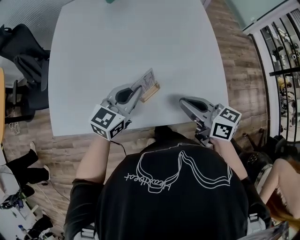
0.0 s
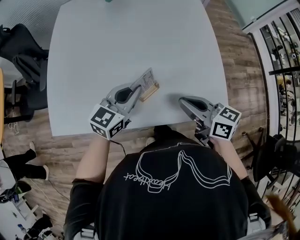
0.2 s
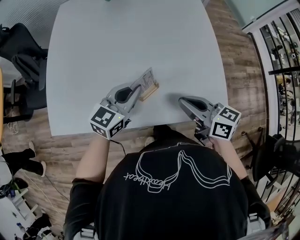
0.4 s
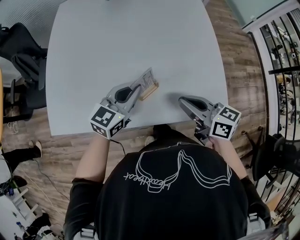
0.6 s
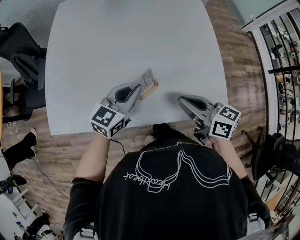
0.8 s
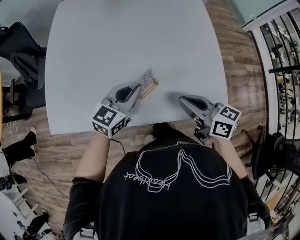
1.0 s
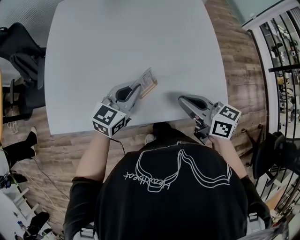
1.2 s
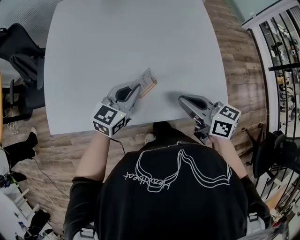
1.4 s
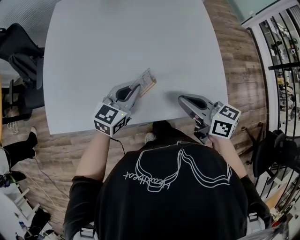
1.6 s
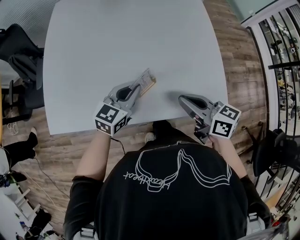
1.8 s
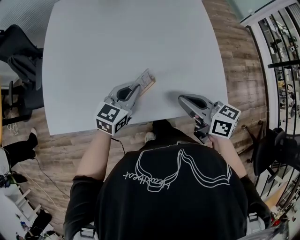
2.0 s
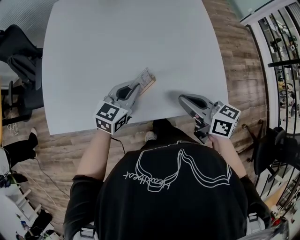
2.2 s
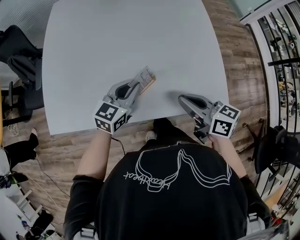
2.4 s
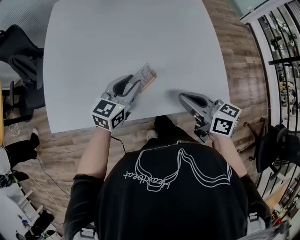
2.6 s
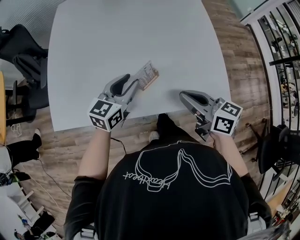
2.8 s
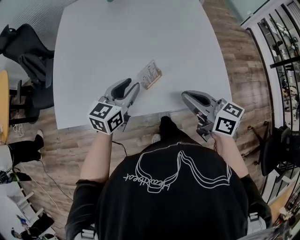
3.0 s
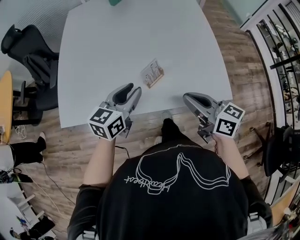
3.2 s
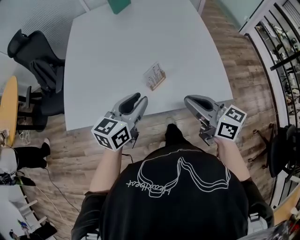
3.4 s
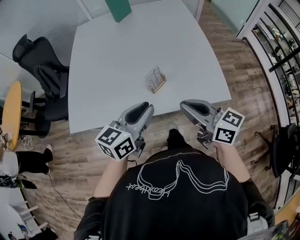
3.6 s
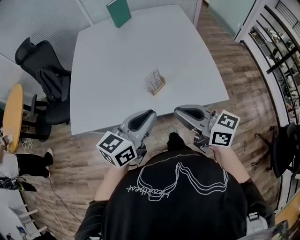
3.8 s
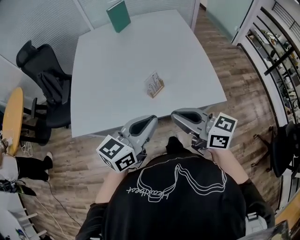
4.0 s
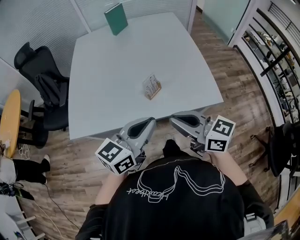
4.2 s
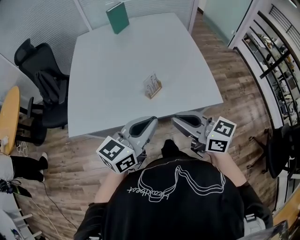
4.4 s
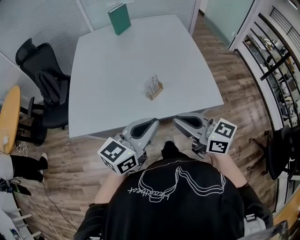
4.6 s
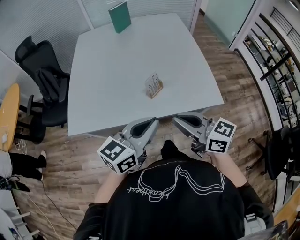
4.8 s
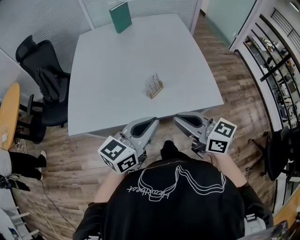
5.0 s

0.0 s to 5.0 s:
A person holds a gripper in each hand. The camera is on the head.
0.0 to 1.6 s: The grippers stay close to where they were, moving slightly.
1.6 to 3.4 s: Both grippers move backward and upward, roughly 15 cm. The left gripper opens.
3.4 to 5.0 s: The right gripper moves backward and to the left, approximately 10 cm. The left gripper is displaced backward and upward by some 15 cm, and closes its fingers.

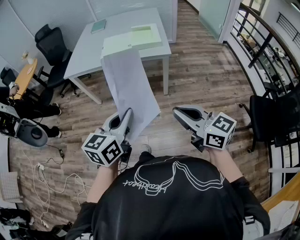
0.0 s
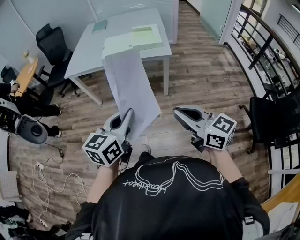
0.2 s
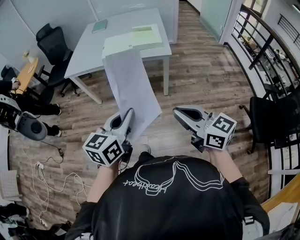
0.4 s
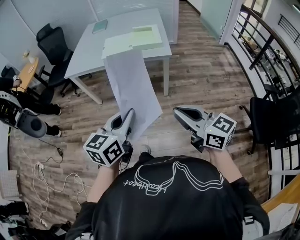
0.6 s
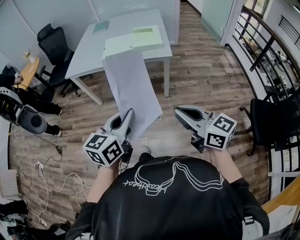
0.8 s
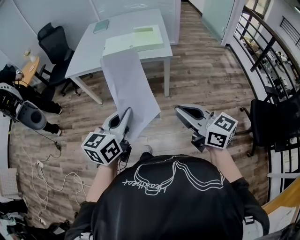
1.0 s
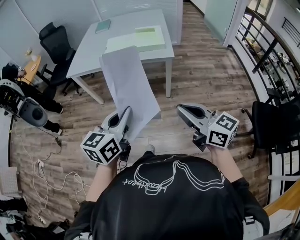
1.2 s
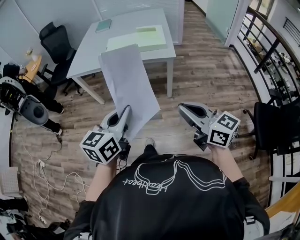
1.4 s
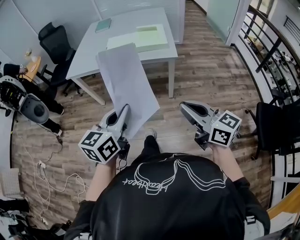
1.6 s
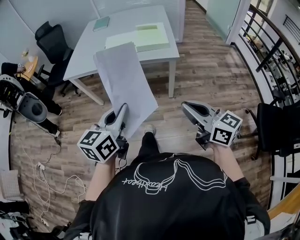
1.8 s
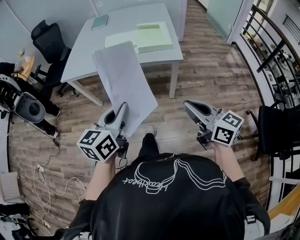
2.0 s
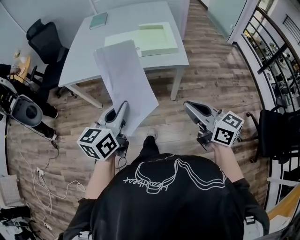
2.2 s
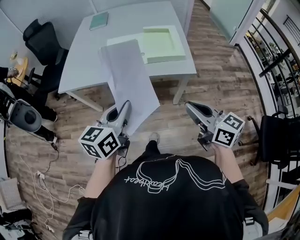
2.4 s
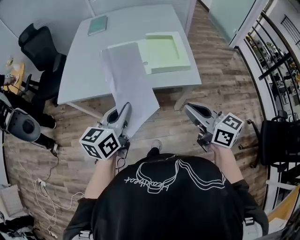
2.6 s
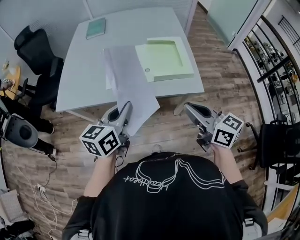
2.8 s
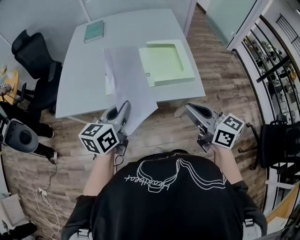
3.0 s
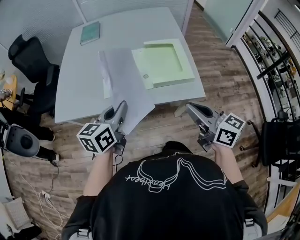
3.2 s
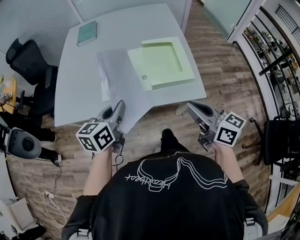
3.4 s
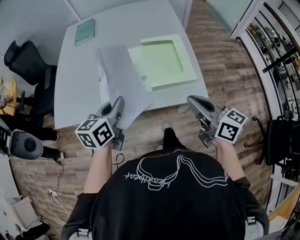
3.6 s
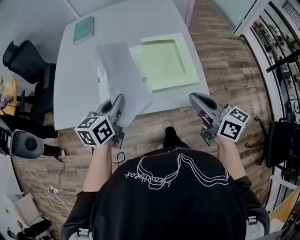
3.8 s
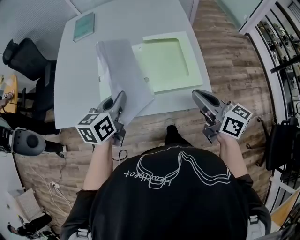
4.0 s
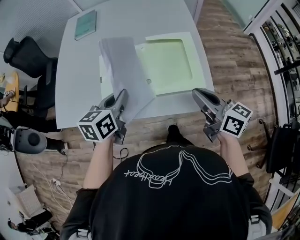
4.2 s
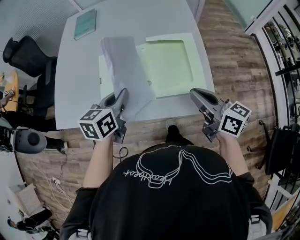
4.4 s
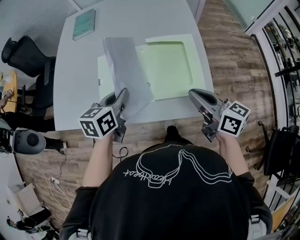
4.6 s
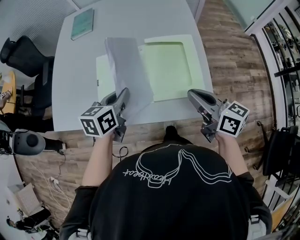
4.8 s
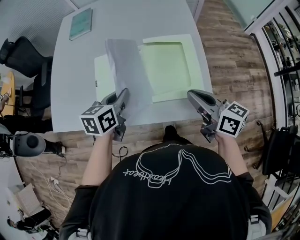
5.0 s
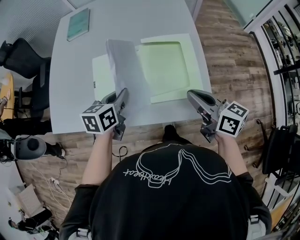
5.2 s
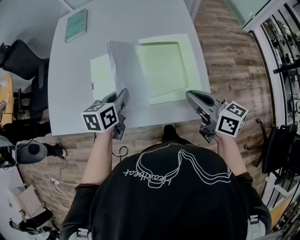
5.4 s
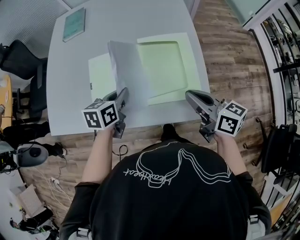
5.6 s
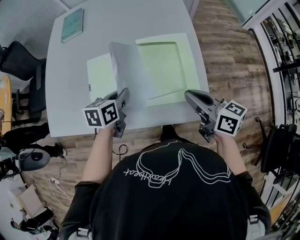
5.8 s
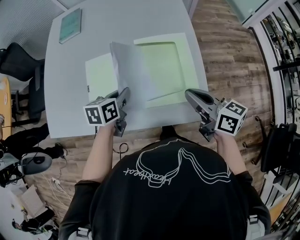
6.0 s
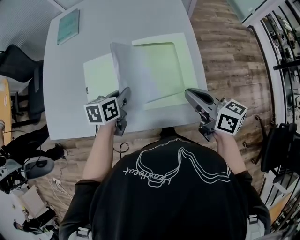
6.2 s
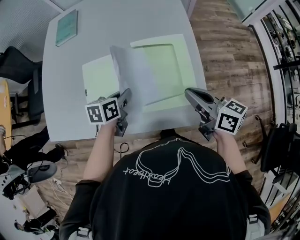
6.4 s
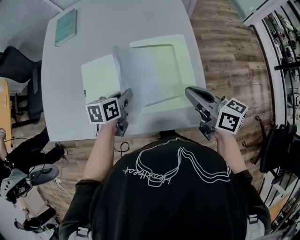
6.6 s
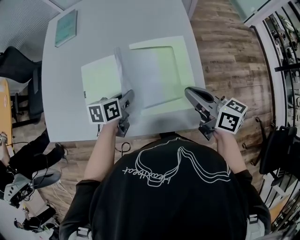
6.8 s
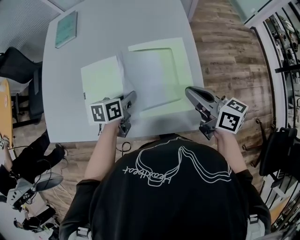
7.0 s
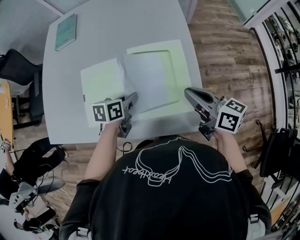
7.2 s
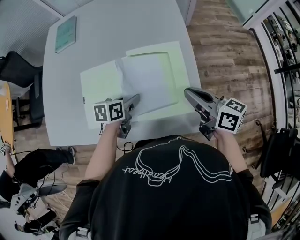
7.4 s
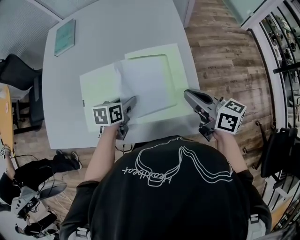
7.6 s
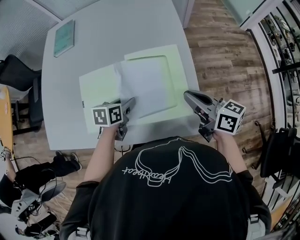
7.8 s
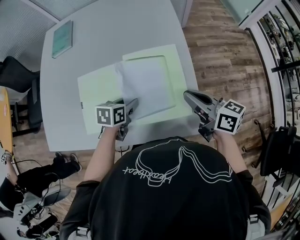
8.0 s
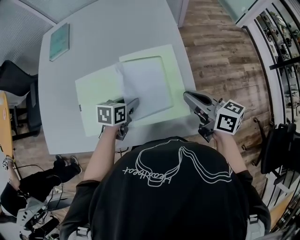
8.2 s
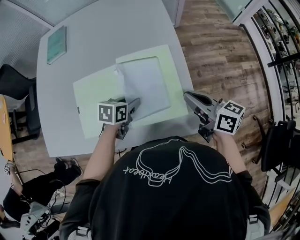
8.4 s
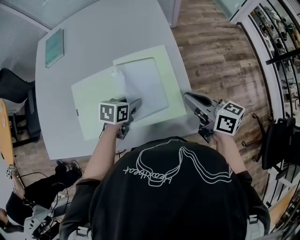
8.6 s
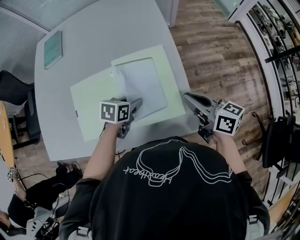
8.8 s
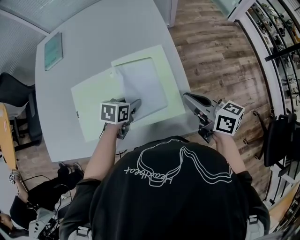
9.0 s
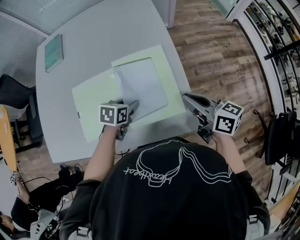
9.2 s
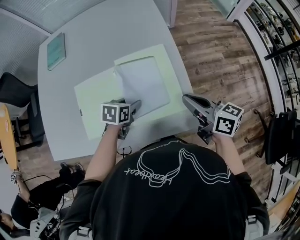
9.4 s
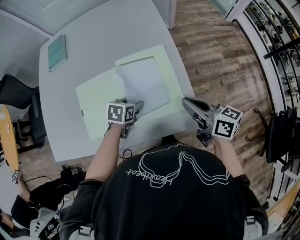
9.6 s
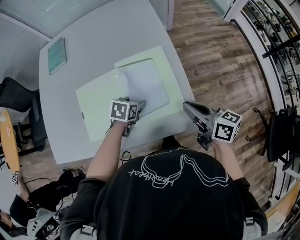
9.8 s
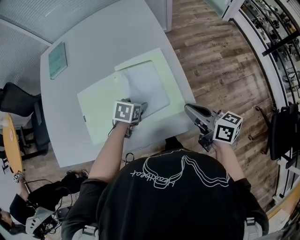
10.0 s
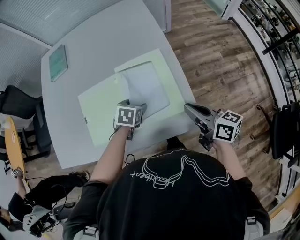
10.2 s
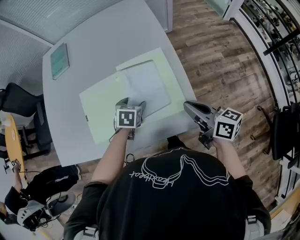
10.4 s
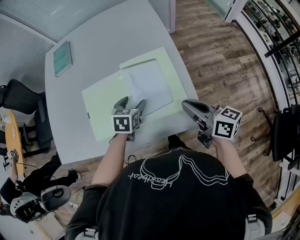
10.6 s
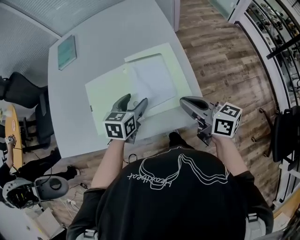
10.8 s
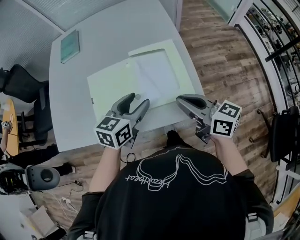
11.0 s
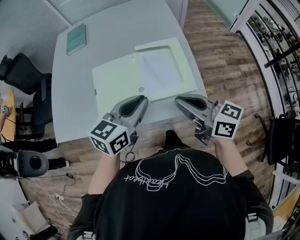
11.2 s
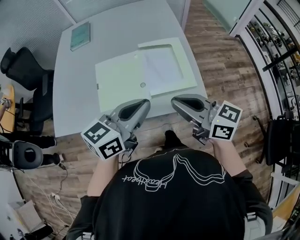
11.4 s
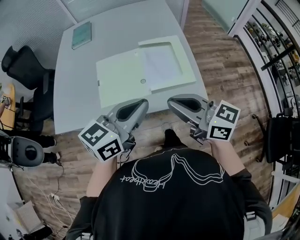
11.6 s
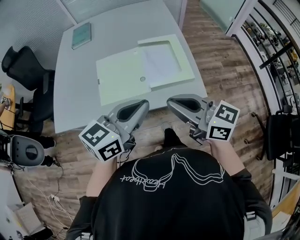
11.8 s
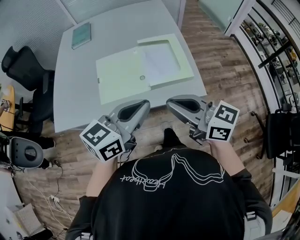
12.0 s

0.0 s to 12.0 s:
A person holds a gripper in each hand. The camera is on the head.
0.0 to 1.6 s: The grippers both shift forward by about 5 cm.
1.6 to 3.0 s: Both grippers are carried forward, about 40 cm.
3.0 to 4.4 s: The two grippers go about 20 cm forward.
4.4 to 6.0 s: The right gripper is displaced forward by some 5 cm. Meanwhile the left gripper moves downward and forward, roughly 10 cm.
6.0 to 7.6 s: The right gripper travels forward by some 5 cm; the left gripper goes some 5 cm downward, and opens its fingers.
7.6 to 9.0 s: The left gripper is displaced to the right by roughly 5 cm.
9.0 to 10.4 s: The right gripper heads backward, covering approximately 5 cm; the left gripper swivels about 20 degrees, and opens its fingers.
10.4 to 12.0 s: The right gripper is displaced backward, to the left and upward by some 30 cm, and changes its angle by about 30 degrees, while the left gripper heads backward and upward, covering some 40 cm, angles its fingers upward, by approximately 50 degrees, and closes up.

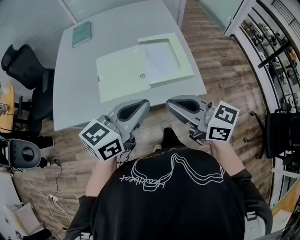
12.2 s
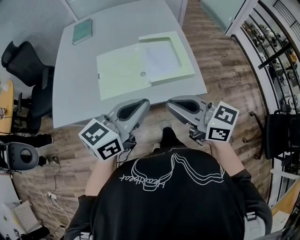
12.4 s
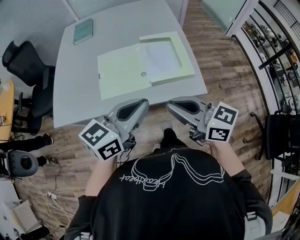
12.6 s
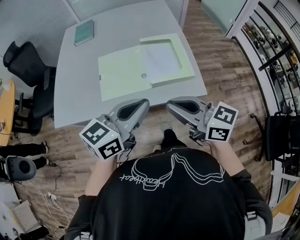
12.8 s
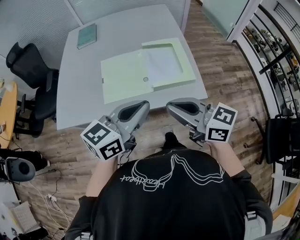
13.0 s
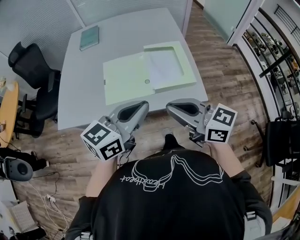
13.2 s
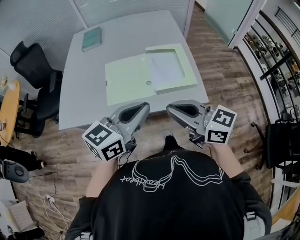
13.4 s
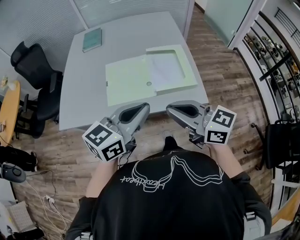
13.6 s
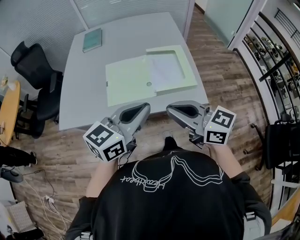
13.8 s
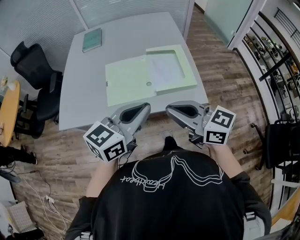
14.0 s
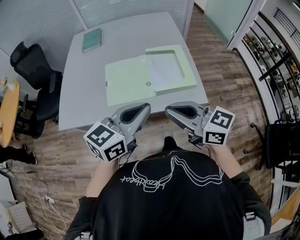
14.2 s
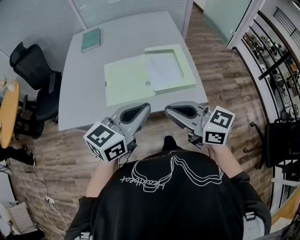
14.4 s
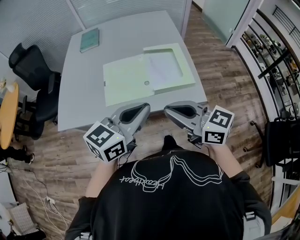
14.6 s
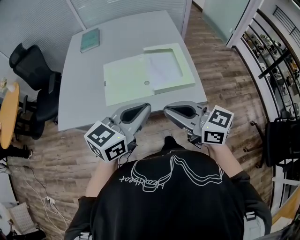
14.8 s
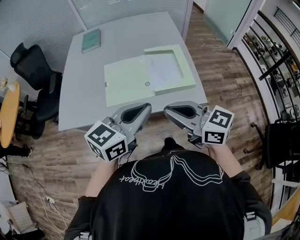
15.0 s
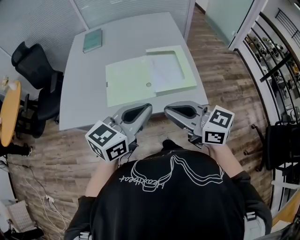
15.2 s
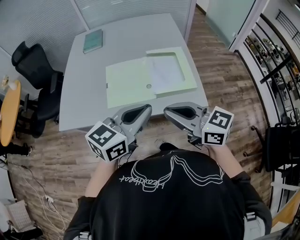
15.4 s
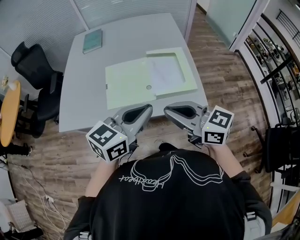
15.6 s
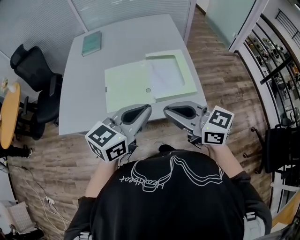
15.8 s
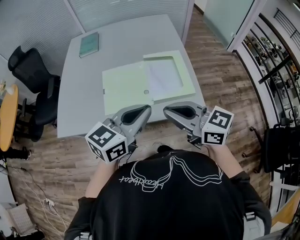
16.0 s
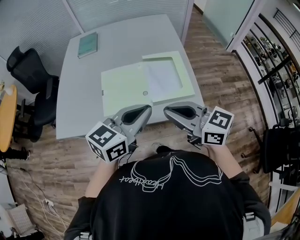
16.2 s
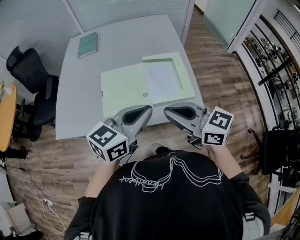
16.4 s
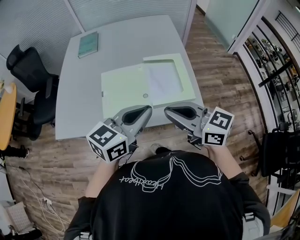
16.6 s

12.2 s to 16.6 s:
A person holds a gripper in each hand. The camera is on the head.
12.2 to 13.6 s: There are only small adjustments of the grippers.
13.6 to 15.2 s: Both grippers stay put.
15.2 to 16.6 s: The two grippers go some 5 cm forward.

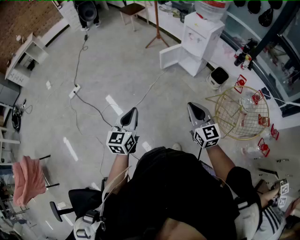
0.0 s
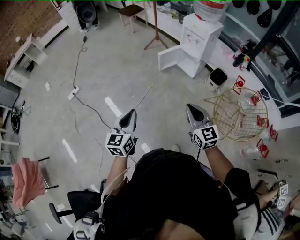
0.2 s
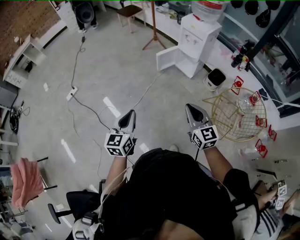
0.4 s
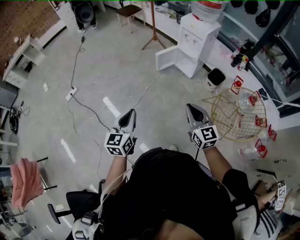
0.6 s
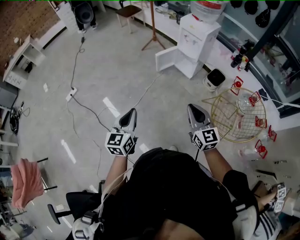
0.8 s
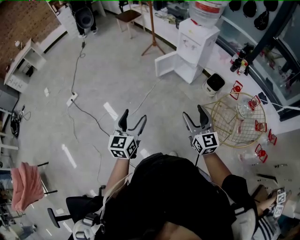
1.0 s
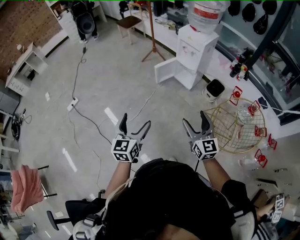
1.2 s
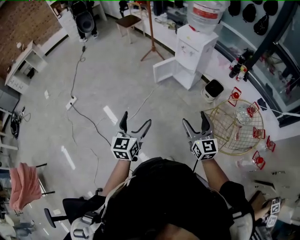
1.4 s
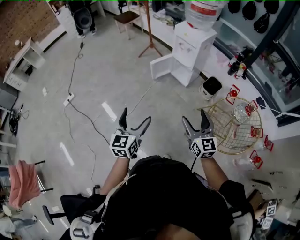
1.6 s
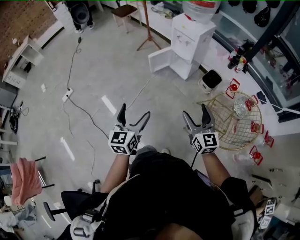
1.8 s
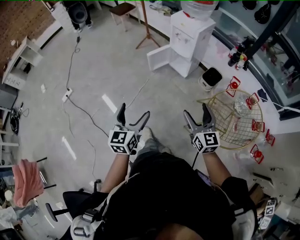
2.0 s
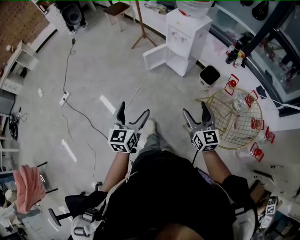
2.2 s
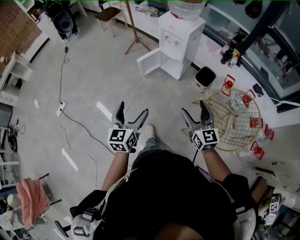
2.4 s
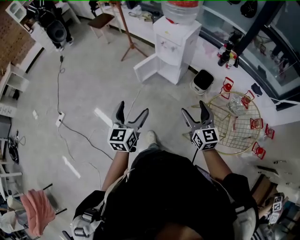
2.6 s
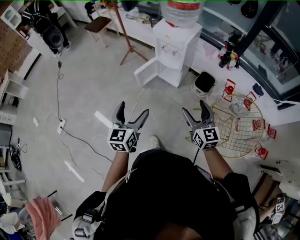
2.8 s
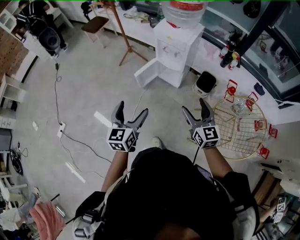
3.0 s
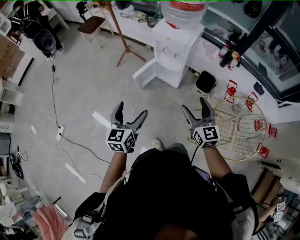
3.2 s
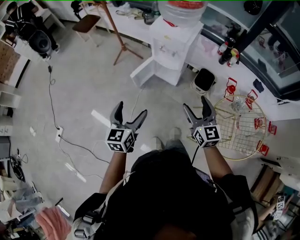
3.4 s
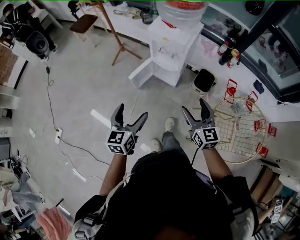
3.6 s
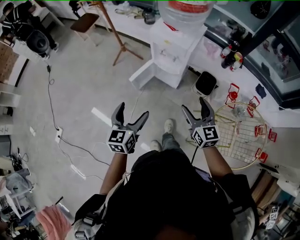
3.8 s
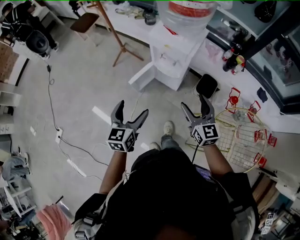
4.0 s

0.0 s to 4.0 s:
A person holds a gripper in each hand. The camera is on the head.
0.0 to 1.4 s: The left gripper shifts roughly 10 cm to the right and forward, and opens its fingers, while the right gripper shifts some 10 cm to the right, and opens.
1.4 to 2.6 s: The right gripper travels forward and to the right by roughly 15 cm; the left gripper is displaced forward by approximately 20 cm.
2.6 to 4.0 s: Both grippers travel together forward, approximately 30 cm.
